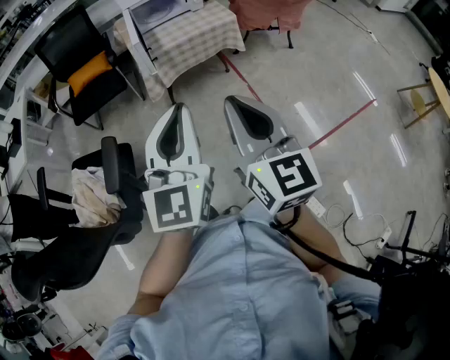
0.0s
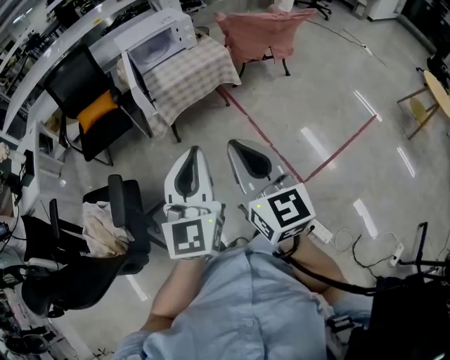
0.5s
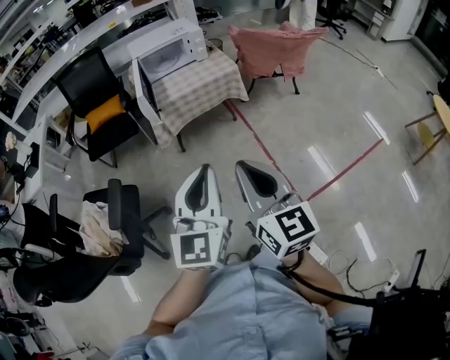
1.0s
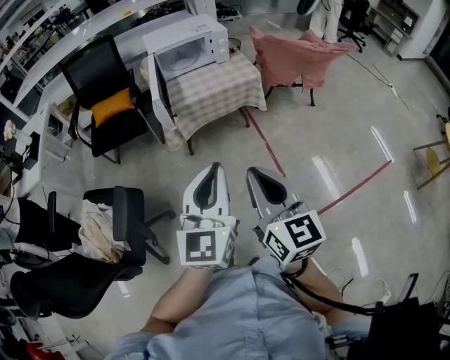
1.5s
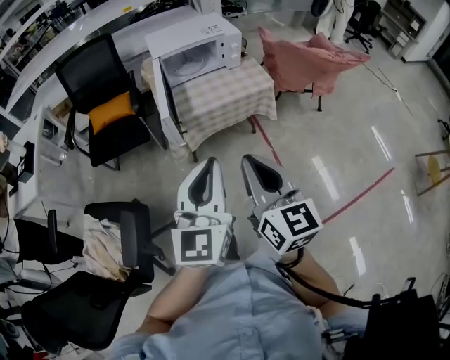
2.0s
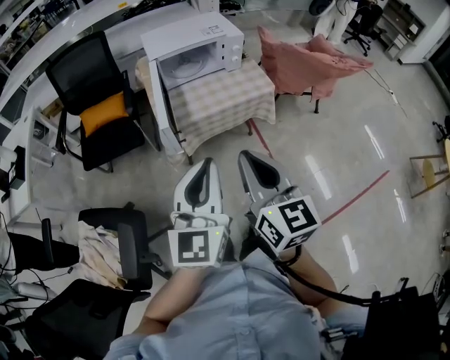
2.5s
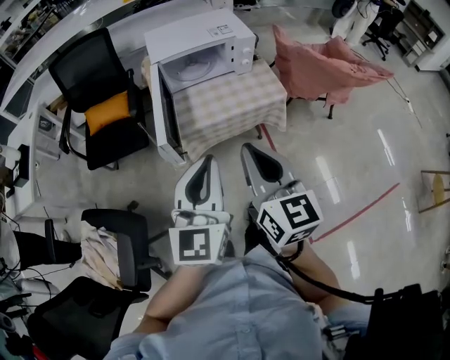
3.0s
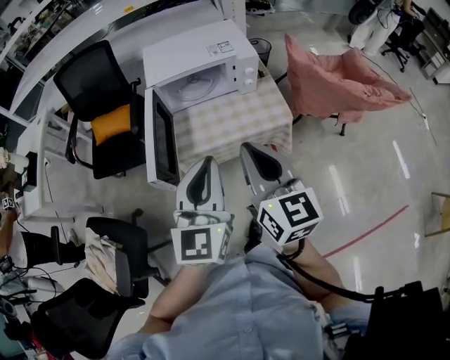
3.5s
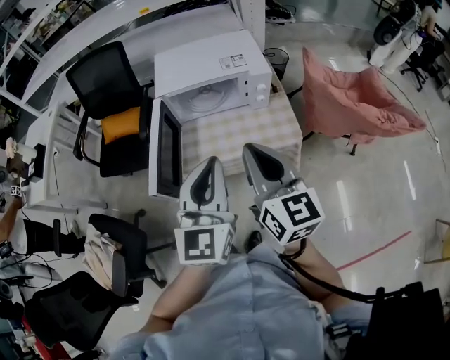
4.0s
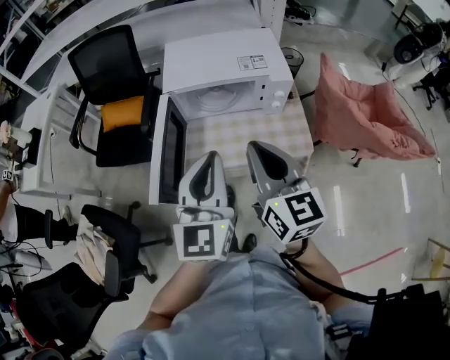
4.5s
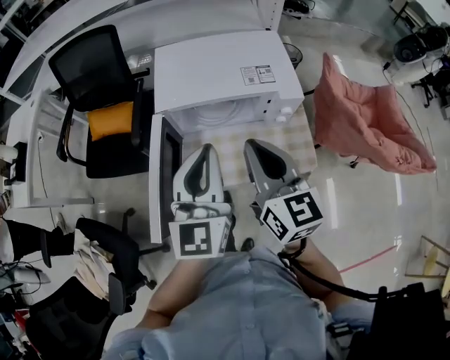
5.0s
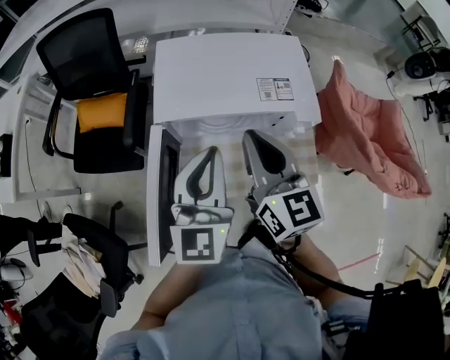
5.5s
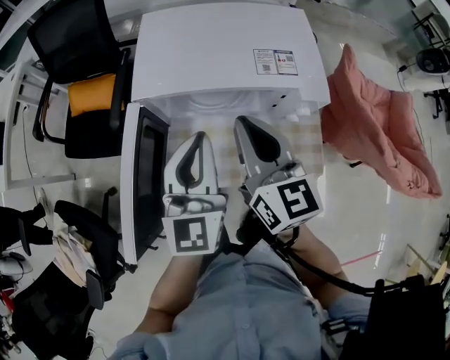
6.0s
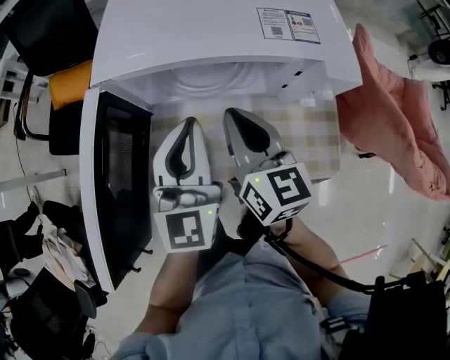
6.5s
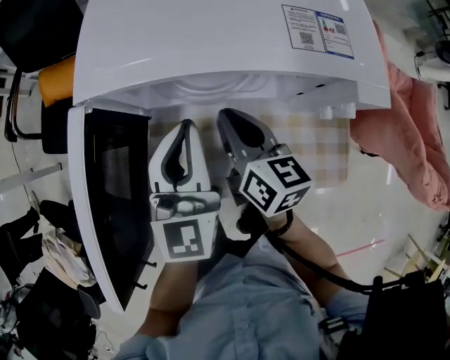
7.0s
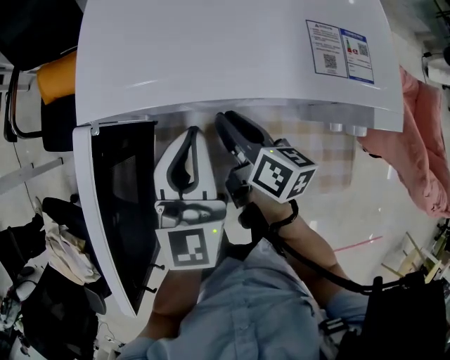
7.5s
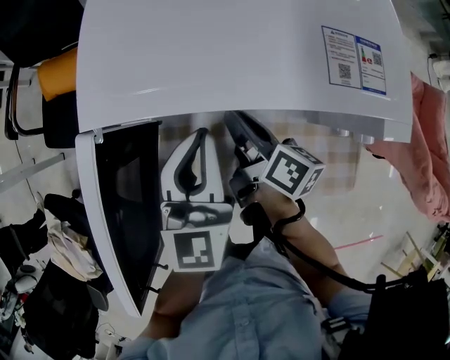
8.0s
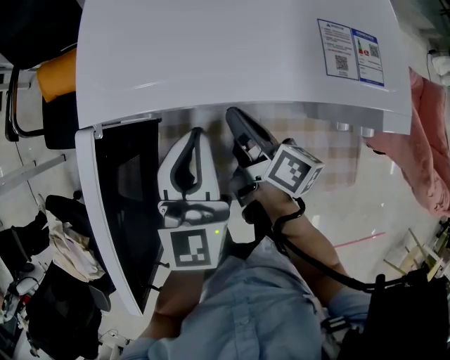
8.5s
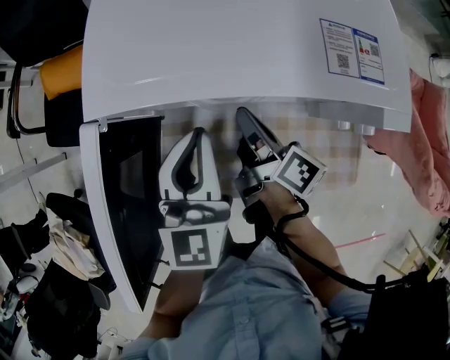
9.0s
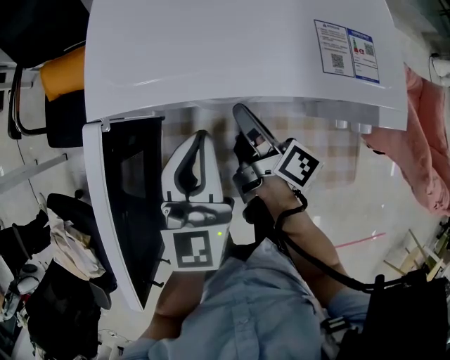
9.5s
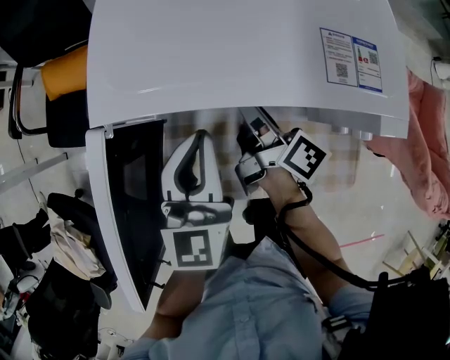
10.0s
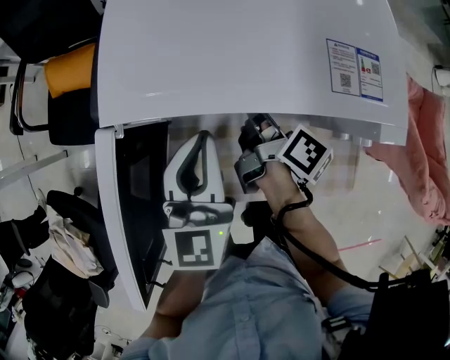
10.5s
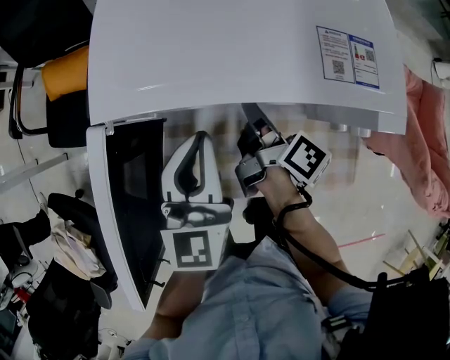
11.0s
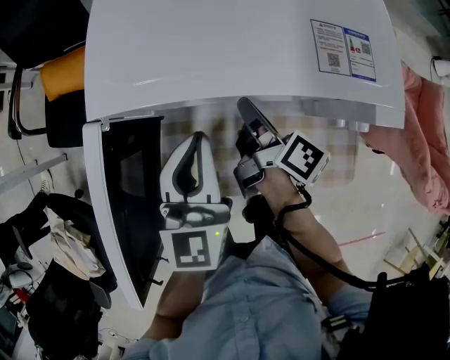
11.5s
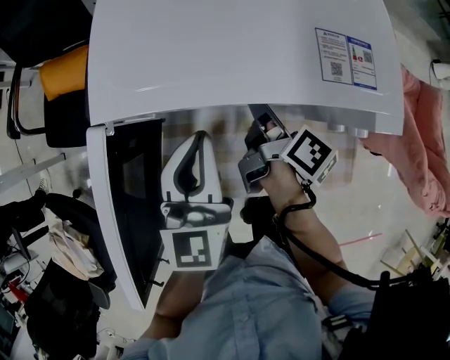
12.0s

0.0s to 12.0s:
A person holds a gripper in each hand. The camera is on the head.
0.0s to 2.0s: The two grippers go approximately 25 cm forward.
2.0s to 4.0s: The two grippers go some 35 cm forward.
4.0s to 6.0s: The grippers both shift forward and downward by roughly 30 cm.
6.0s to 8.0s: The right gripper is displaced downward by roughly 25 cm, and rolls clockwise, seen from behind, by roughly 50 degrees, while the left gripper is displaced downward and forward by some 15 cm.
8.0s to 10.0s: There are only small adjustments of the grippers.
10.0s to 12.0s: The right gripper closes and opens again.

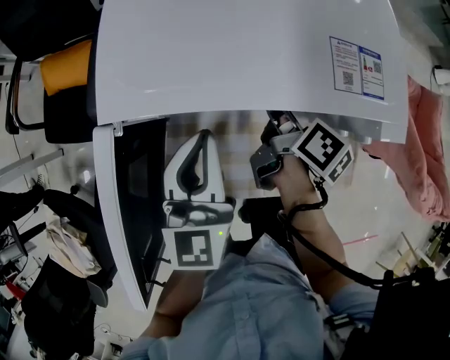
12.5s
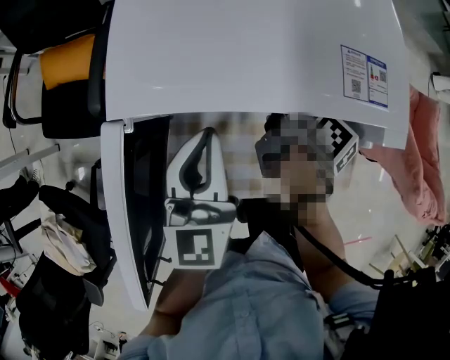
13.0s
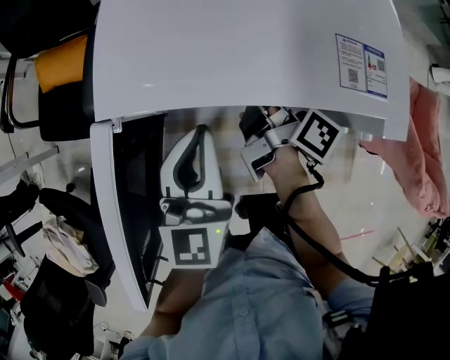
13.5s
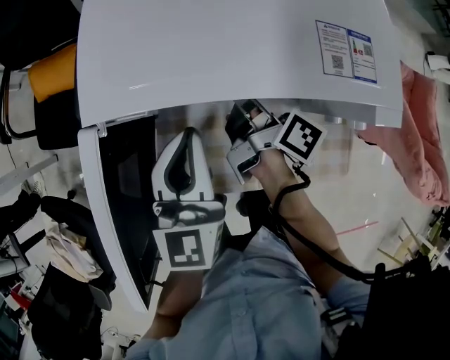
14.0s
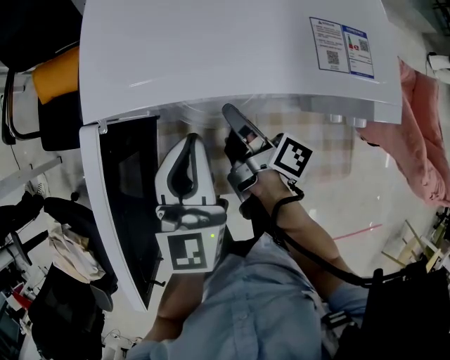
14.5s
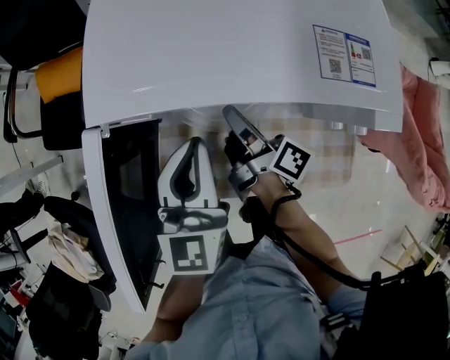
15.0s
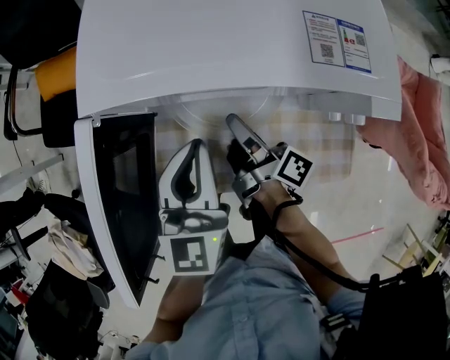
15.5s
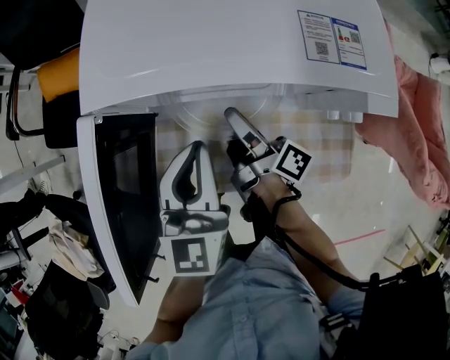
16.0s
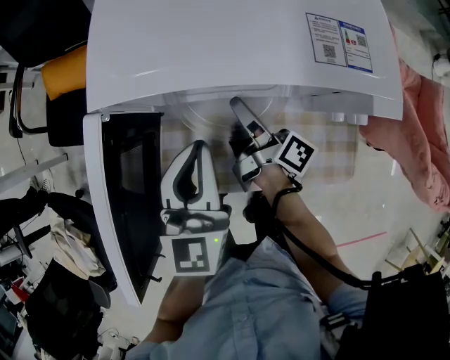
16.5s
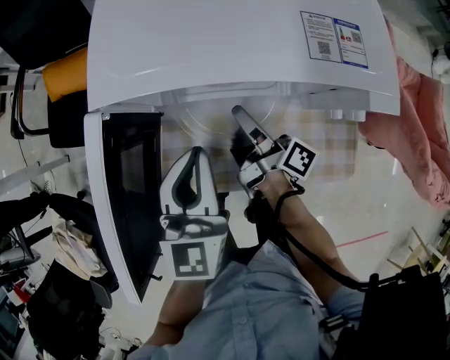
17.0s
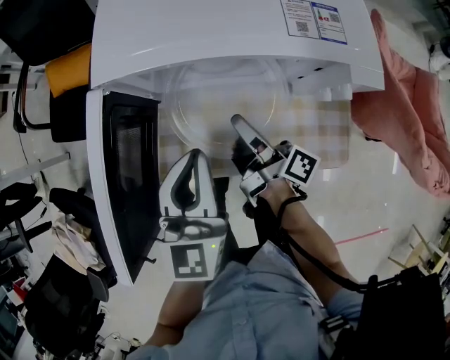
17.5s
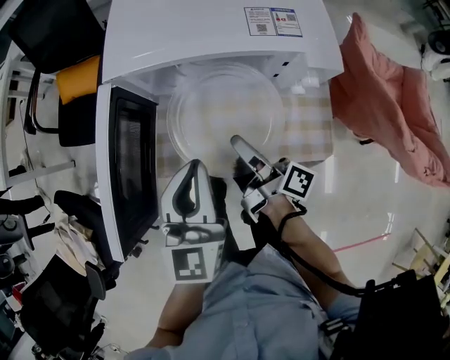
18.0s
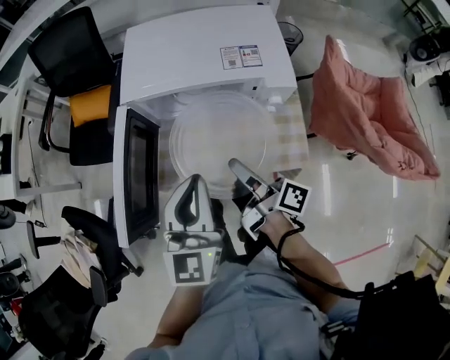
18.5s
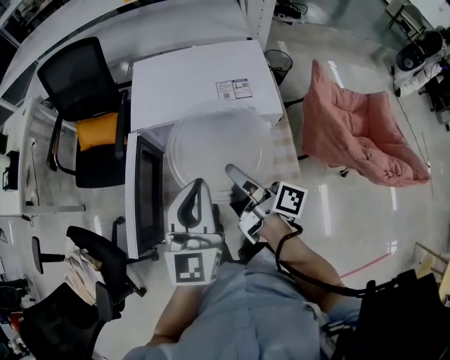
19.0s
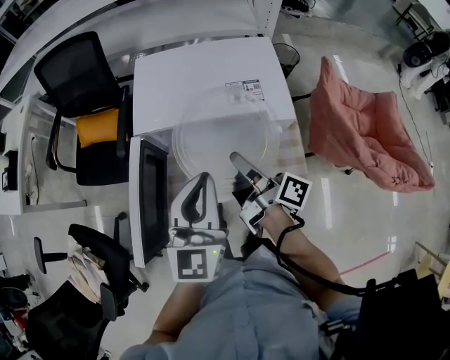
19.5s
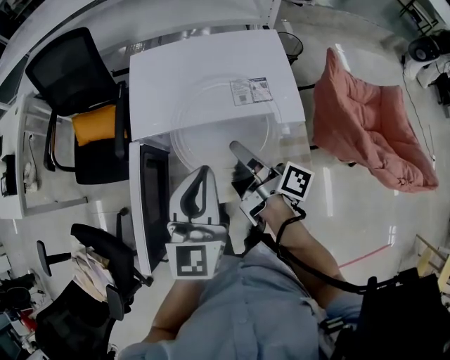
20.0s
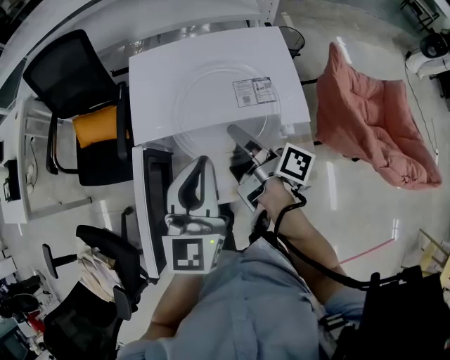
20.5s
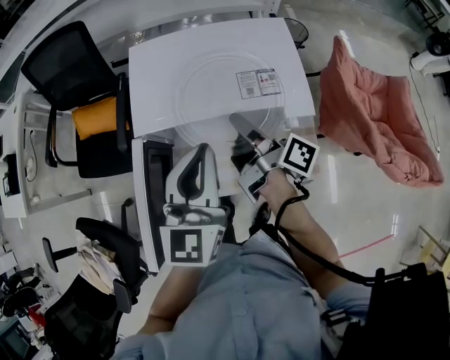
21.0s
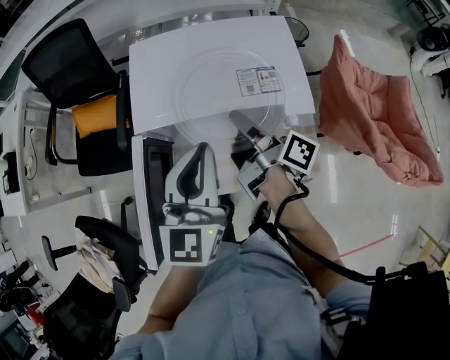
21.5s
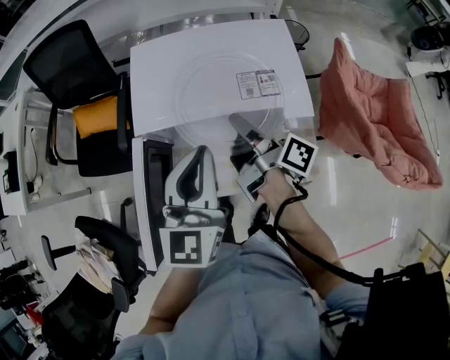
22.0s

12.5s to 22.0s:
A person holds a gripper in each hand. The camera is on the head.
12.5s to 14.5s: The right gripper travels to the left by approximately 5 cm, and rotates some 20 degrees.
14.5s to 16.5s: There are only small adjustments of the grippers.
16.5s to 18.0s: Both grippers move backward and upward, about 15 cm.
18.0s to 20.0s: The grippers both shift upward and forward by roughly 15 cm.
20.0s to 22.0s: The right gripper is displaced forward by some 5 cm.

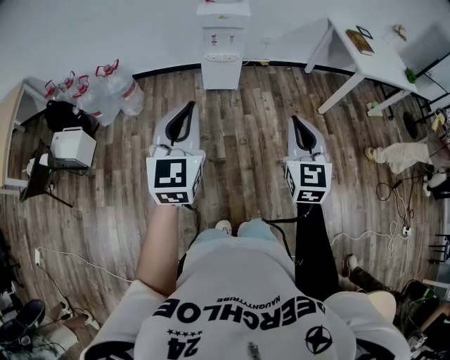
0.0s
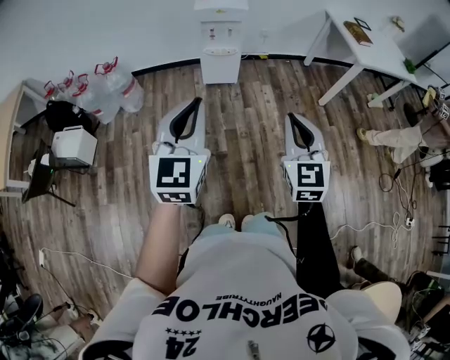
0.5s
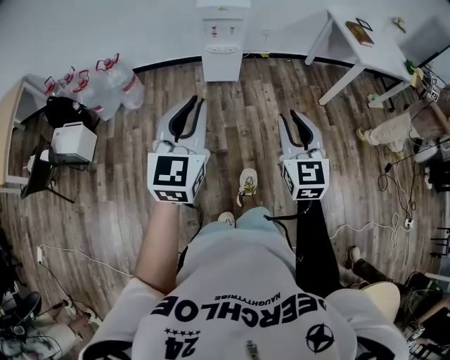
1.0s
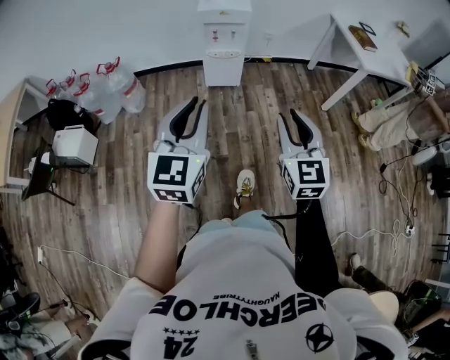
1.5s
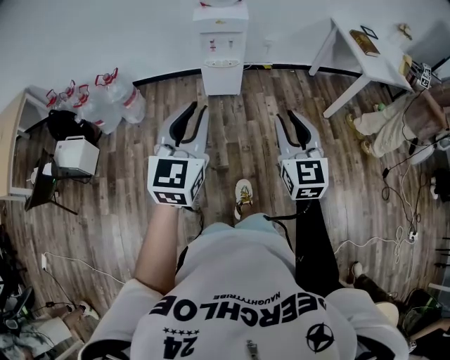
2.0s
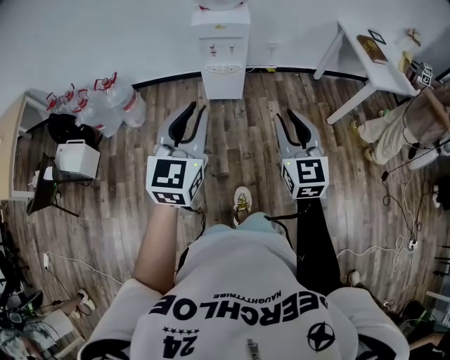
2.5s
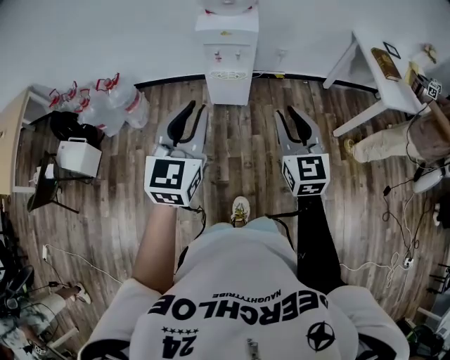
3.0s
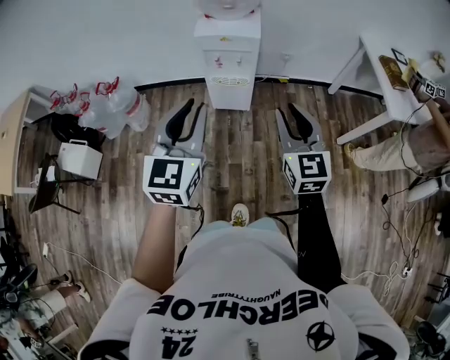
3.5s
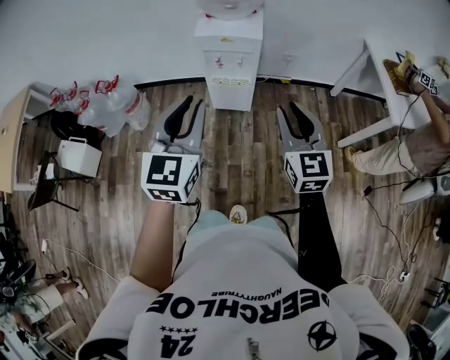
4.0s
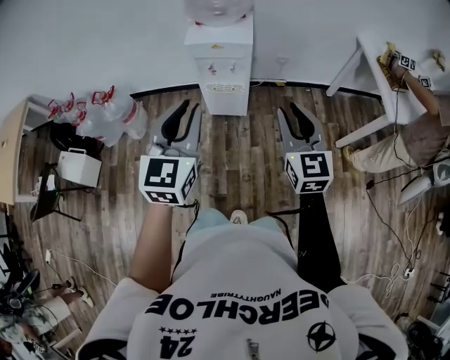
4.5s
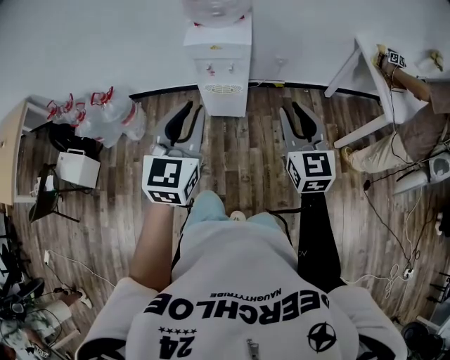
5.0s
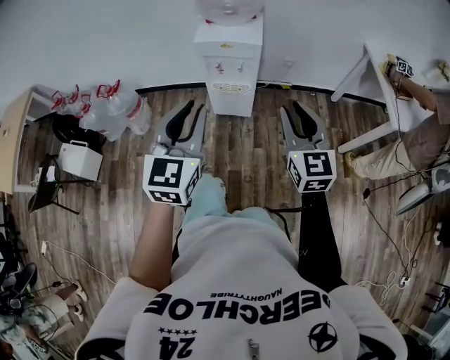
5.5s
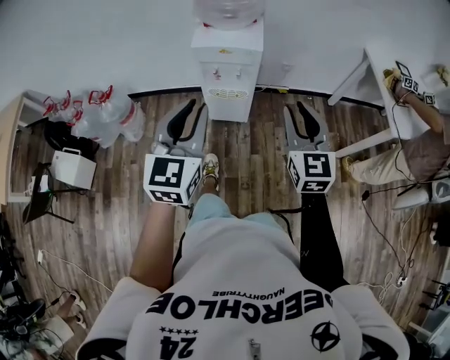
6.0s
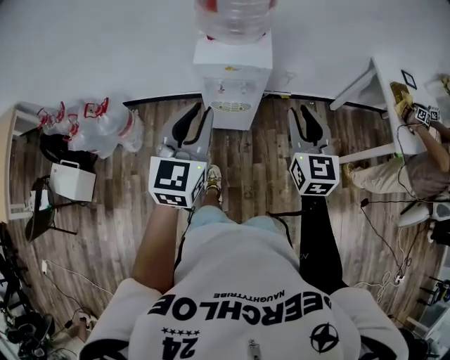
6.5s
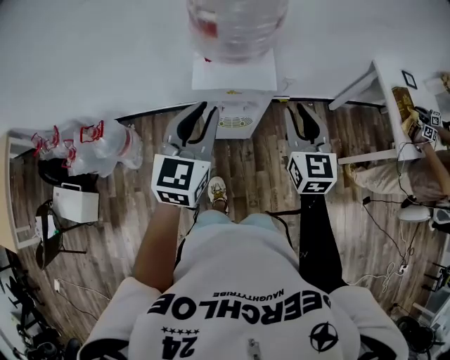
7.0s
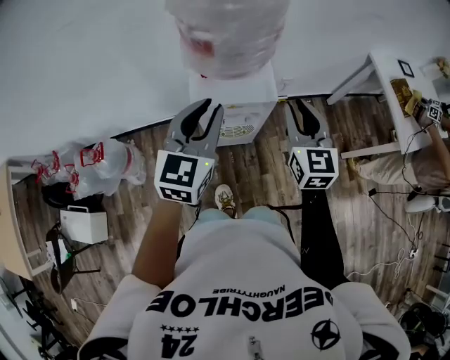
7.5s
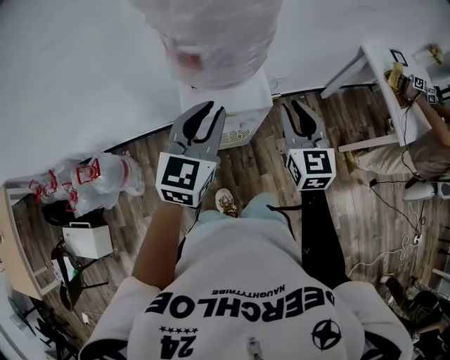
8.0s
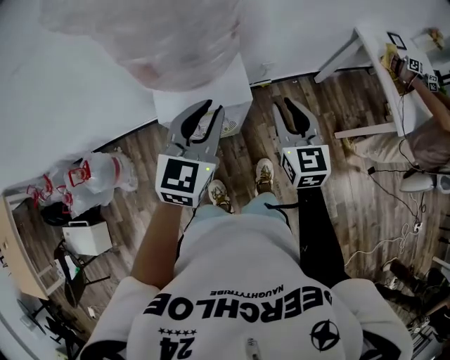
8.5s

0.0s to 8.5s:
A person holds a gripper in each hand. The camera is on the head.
0.0s to 2.0s: Both grippers move forward, approximately 5 cm.
2.0s to 4.0s: Both grippers travel together forward, roughly 25 cm.
4.0s to 6.5s: The two grippers go about 15 cm forward.
6.5s to 8.5s: The grippers both shift forward by roughly 20 cm. The left gripper turns by roughly 20 degrees.
